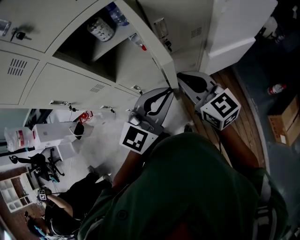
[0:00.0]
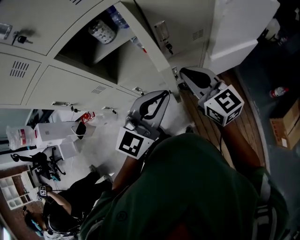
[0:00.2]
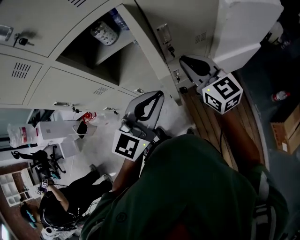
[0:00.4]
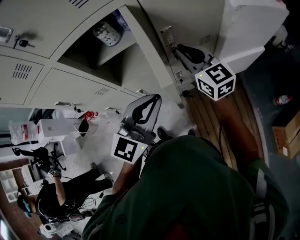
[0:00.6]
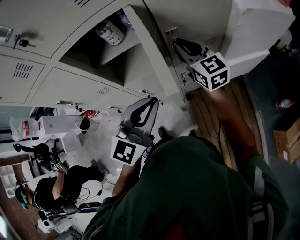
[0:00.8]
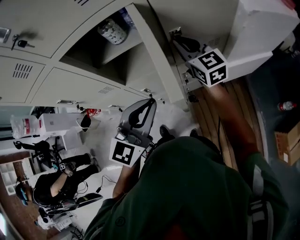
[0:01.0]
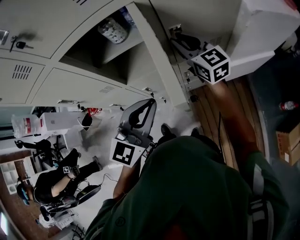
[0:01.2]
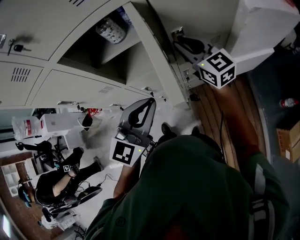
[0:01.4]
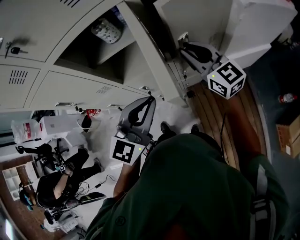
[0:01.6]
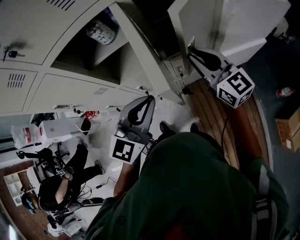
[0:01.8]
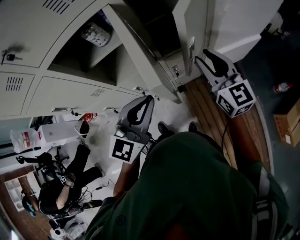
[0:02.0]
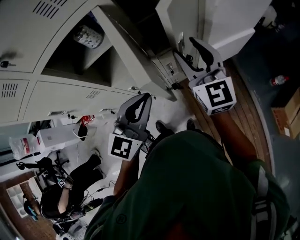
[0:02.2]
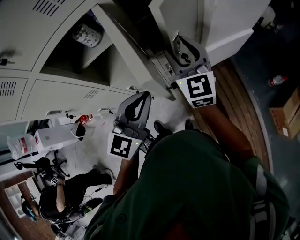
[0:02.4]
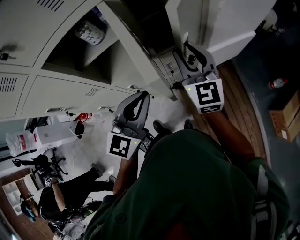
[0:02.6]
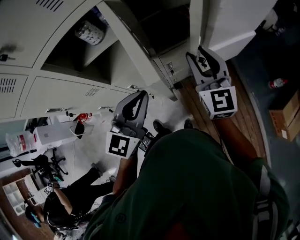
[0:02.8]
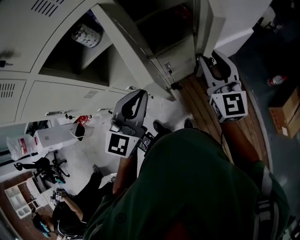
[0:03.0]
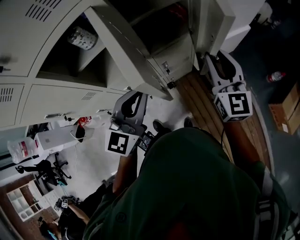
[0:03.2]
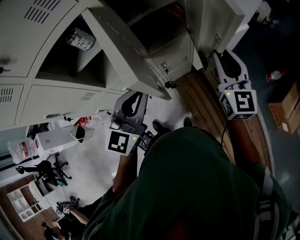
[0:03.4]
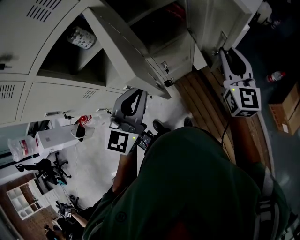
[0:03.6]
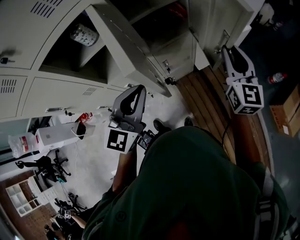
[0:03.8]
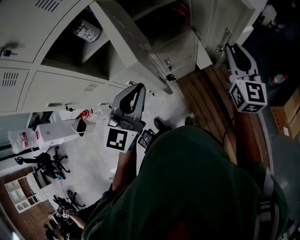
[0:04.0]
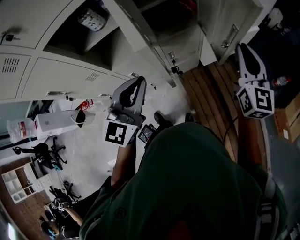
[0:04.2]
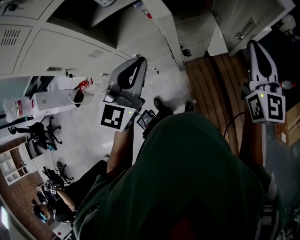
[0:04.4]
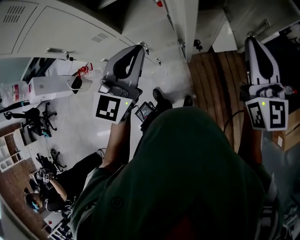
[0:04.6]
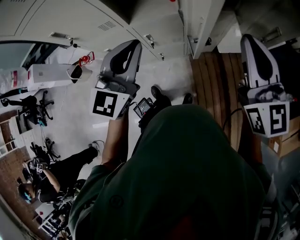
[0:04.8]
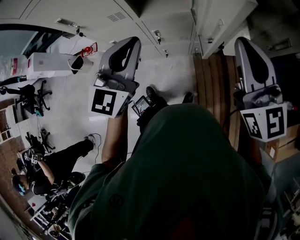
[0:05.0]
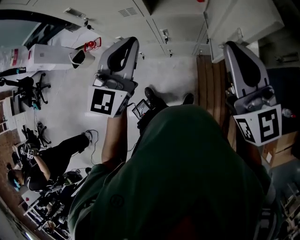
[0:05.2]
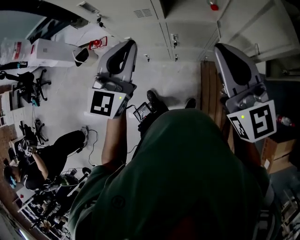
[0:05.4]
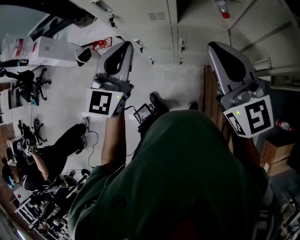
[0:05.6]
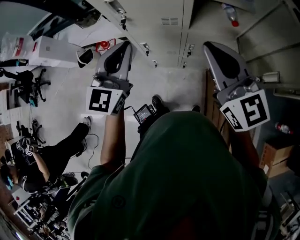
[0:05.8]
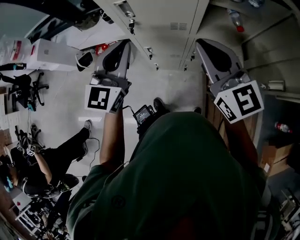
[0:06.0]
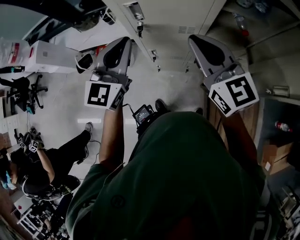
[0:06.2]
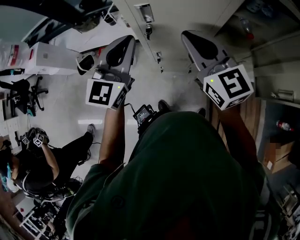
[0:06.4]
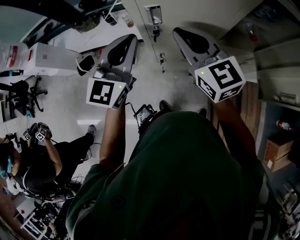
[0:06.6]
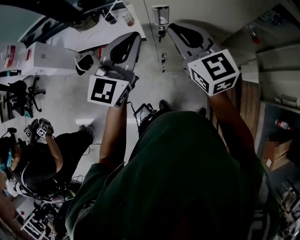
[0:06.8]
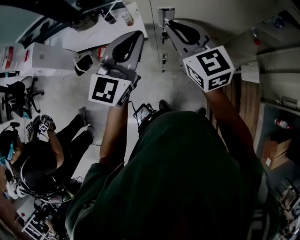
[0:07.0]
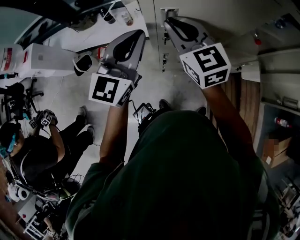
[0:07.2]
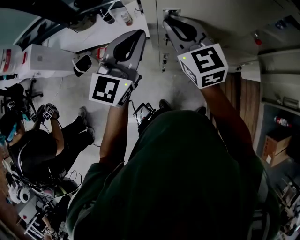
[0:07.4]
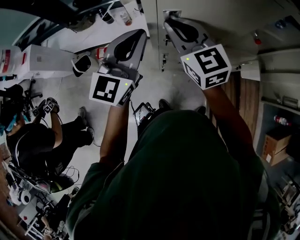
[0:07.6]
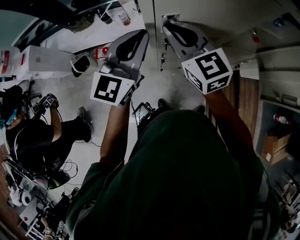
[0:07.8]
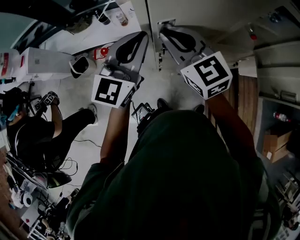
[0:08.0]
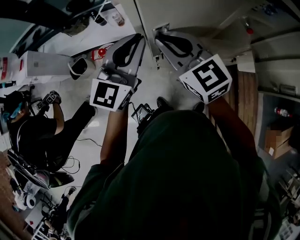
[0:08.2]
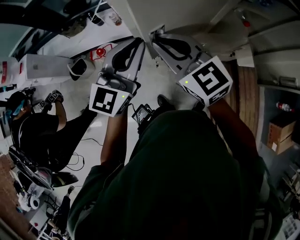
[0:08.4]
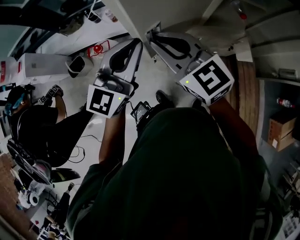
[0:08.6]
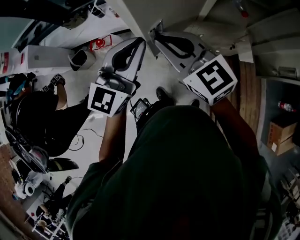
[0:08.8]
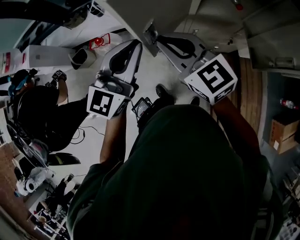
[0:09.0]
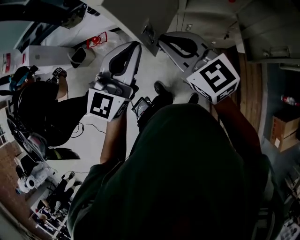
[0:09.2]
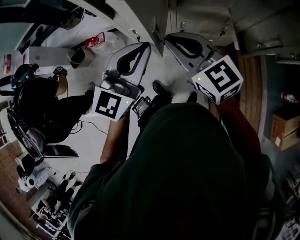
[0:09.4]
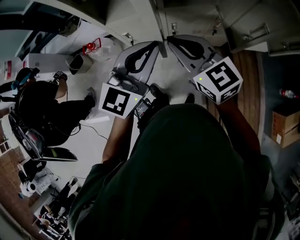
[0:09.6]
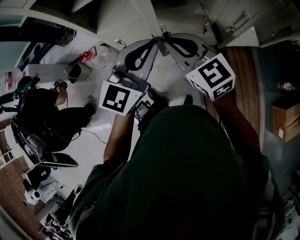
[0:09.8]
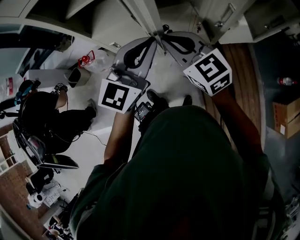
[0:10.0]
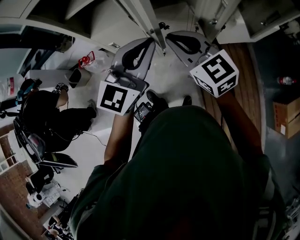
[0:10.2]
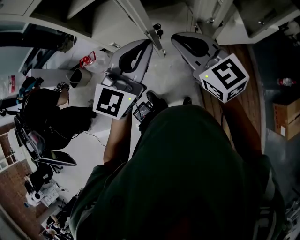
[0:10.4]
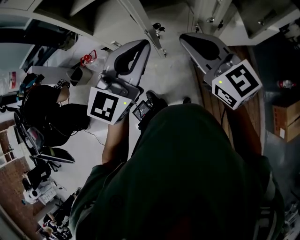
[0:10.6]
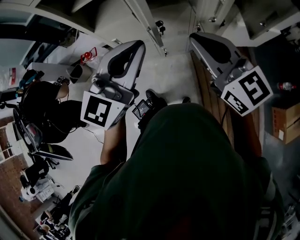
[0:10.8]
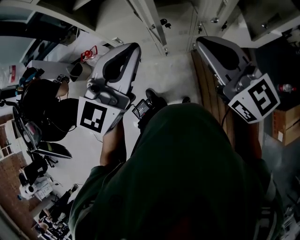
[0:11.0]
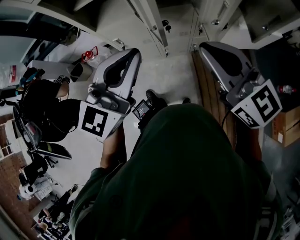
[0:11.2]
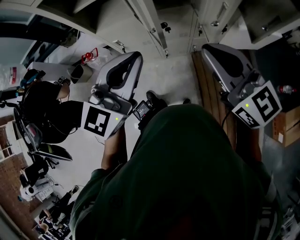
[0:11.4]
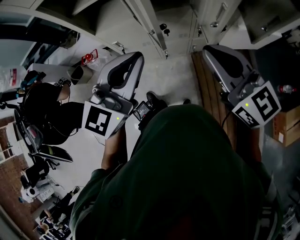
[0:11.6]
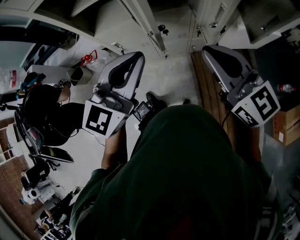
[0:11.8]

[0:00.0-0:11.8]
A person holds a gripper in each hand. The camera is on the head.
0:00.0 to 0:01.4: The right gripper shifts approximately 20 cm forward. Meanwhile the left gripper moves to the left, some 5 cm.
0:01.4 to 0:03.0: The right gripper moves left and right over approximately 15 cm, changing direction 2 times, and changes its angle by some 30 degrees.
0:03.0 to 0:04.4: The right gripper moves to the right, about 10 cm, and closes its fingers.
0:04.4 to 0:06.0: The right gripper changes place by about 50 cm, and rotates roughly 40 degrees, while the left gripper changes place by approximately 40 cm, and turns by about 30 degrees.
0:06.0 to 0:07.4: The right gripper moves to the left and forward, about 25 cm. The left gripper shifts approximately 10 cm forward and to the left.
0:07.4 to 0:08.8: The two grippers go about 15 cm backward and to the right.
0:08.8 to 0:10.4: The two grippers go approximately 30 cm to the right and backward.
0:10.4 to 0:11.8: The left gripper moves about 5 cm, while the right gripper heads upward and to the right, covering some 5 cm.

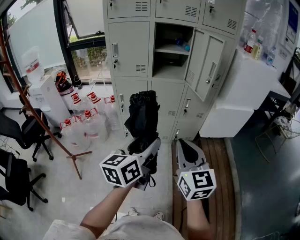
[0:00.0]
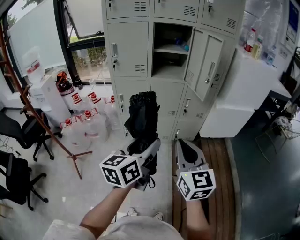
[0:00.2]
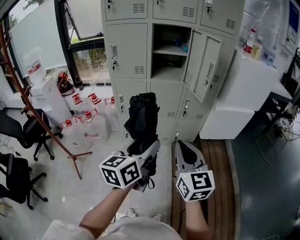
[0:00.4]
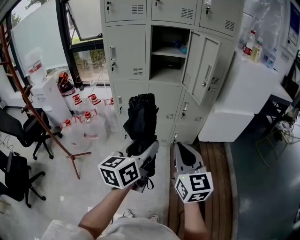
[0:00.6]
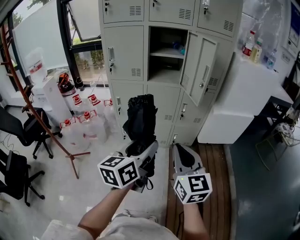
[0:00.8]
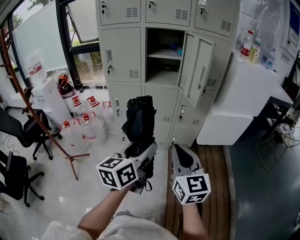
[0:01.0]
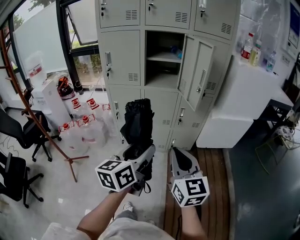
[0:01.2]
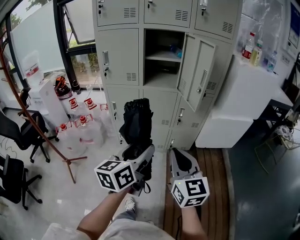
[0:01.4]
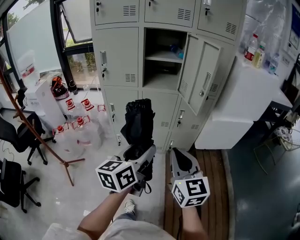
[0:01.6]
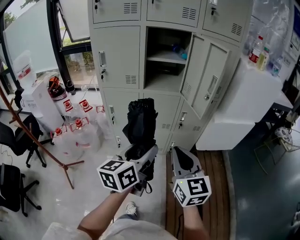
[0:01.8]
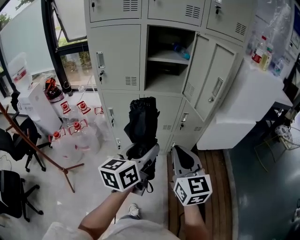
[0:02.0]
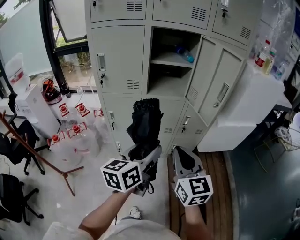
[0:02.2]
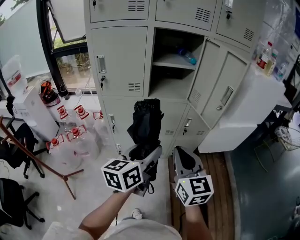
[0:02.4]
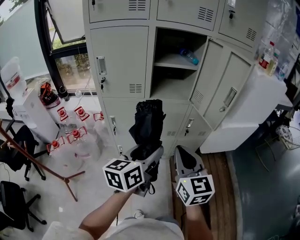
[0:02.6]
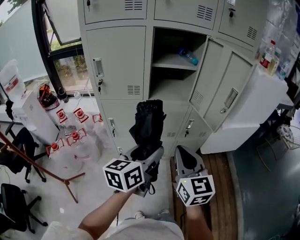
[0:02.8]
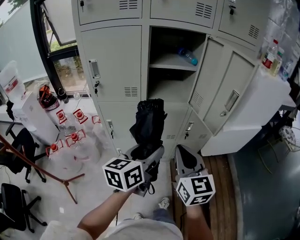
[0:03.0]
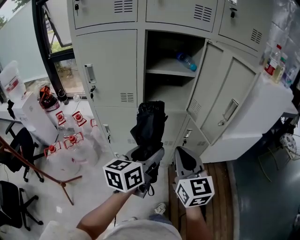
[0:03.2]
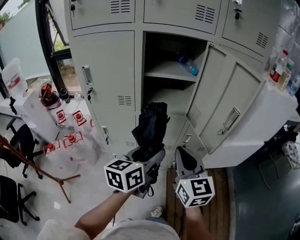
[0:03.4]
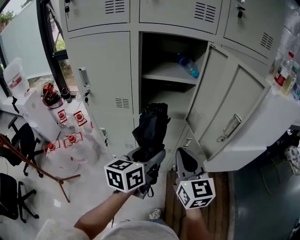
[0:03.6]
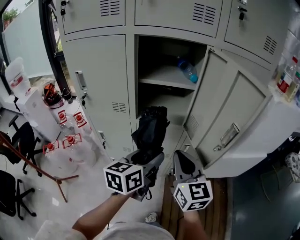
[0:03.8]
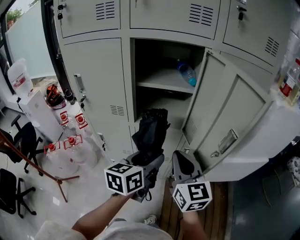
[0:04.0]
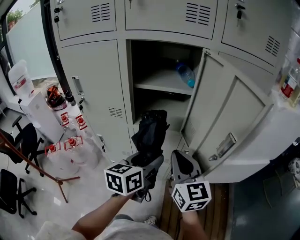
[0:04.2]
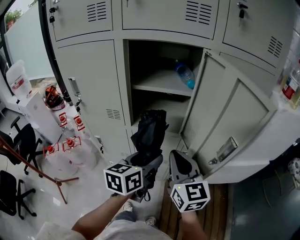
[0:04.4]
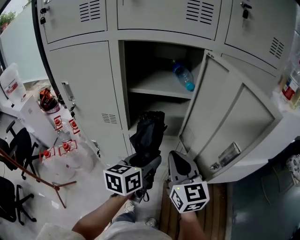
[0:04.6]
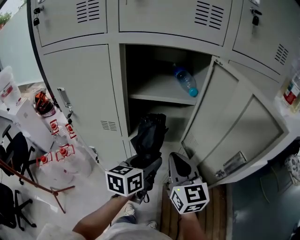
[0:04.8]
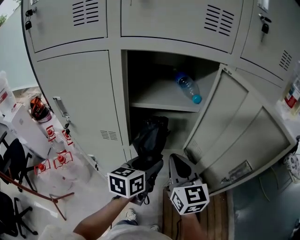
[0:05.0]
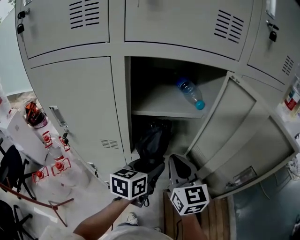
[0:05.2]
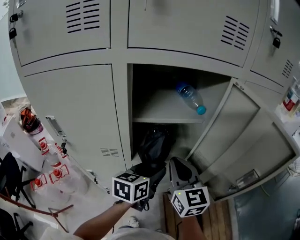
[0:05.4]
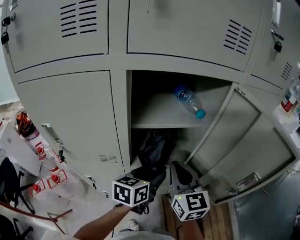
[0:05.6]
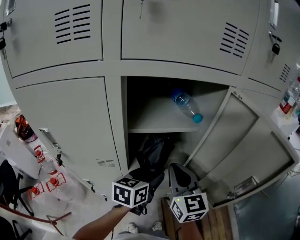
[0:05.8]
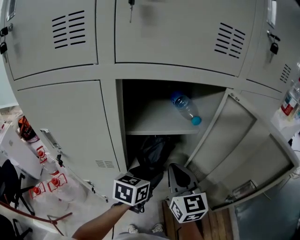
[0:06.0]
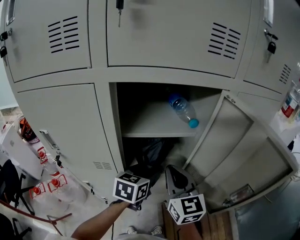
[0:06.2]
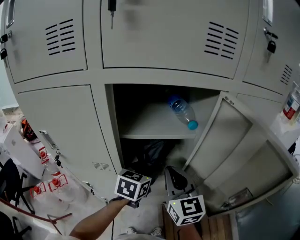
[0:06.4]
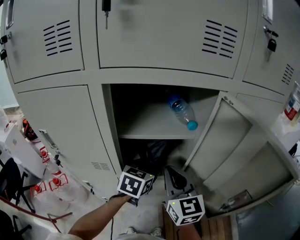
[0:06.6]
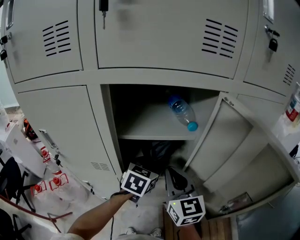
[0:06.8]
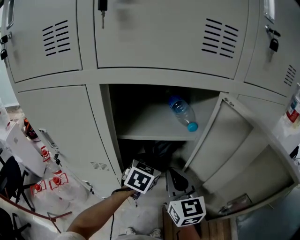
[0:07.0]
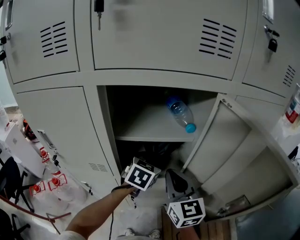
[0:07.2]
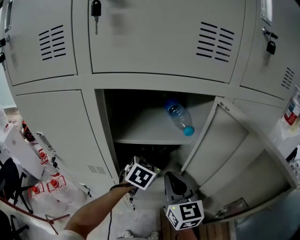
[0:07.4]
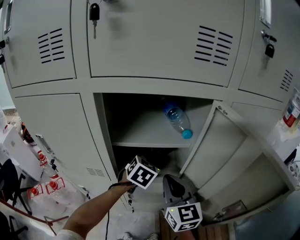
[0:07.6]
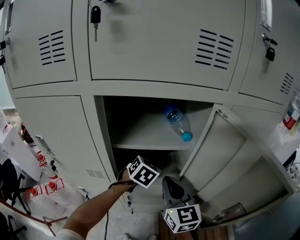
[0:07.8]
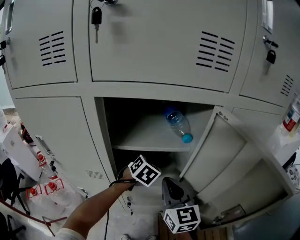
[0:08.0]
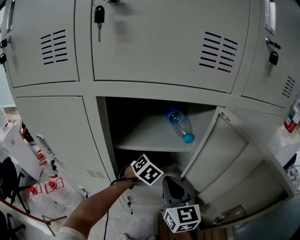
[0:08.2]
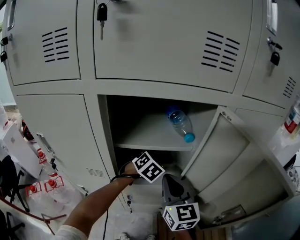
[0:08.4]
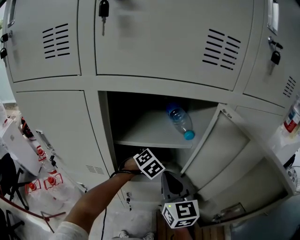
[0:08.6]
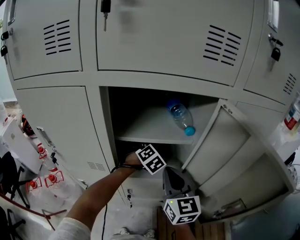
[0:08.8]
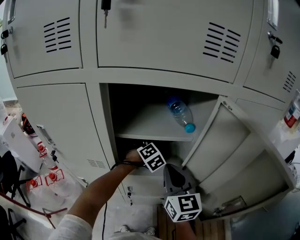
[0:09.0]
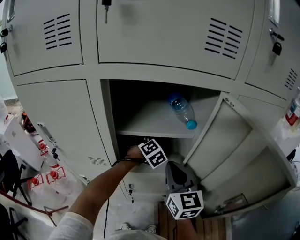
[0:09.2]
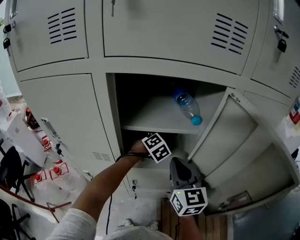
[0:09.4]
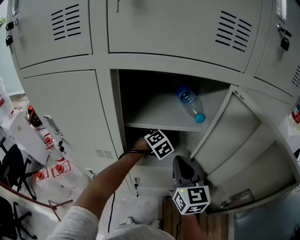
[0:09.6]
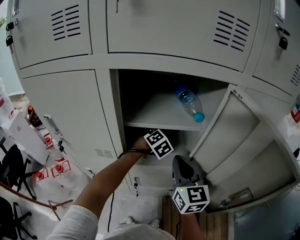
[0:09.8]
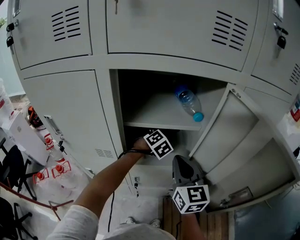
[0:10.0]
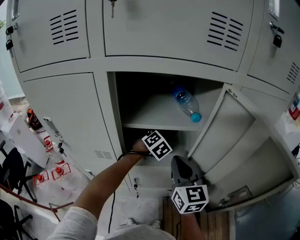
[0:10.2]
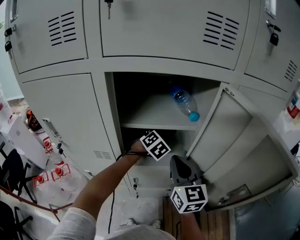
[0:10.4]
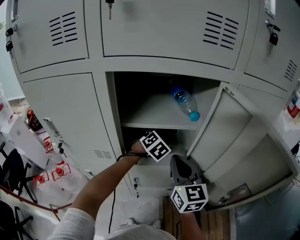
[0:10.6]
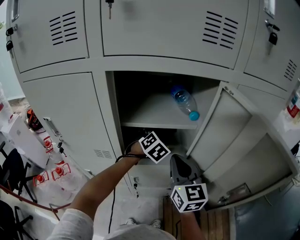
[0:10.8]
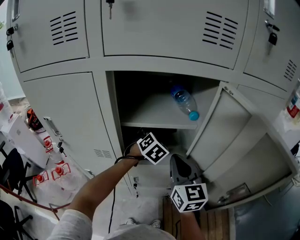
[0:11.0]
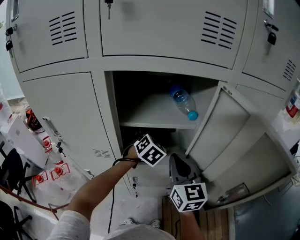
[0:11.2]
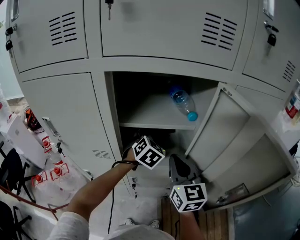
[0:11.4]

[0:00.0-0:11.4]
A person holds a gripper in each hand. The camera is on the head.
0:00.0 to 0:01.4: Both grippers move to the right, roughly 5 cm.
0:01.4 to 0:02.8: The grippers both shift forward and to the left by about 20 cm.
0:02.8 to 0:04.2: The grippers both shift forward and to the right by roughly 20 cm.
0:04.2 to 0:05.6: The left gripper moves forward, roughly 15 cm. Meanwhile the right gripper is displaced forward and to the left by roughly 15 cm.
0:05.6 to 0:07.2: The left gripper shifts about 10 cm forward, and rotates some 30 degrees.
0:07.2 to 0:08.6: The left gripper shifts roughly 10 cm forward, and swivels some 30 degrees.
0:08.6 to 0:10.0: The grippers move only a little.
0:10.0 to 0:11.4: The left gripper moves upward and backward, about 10 cm, and turns by roughly 20 degrees.

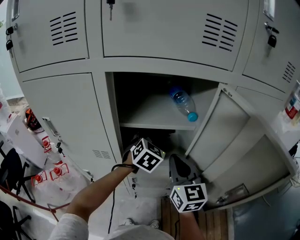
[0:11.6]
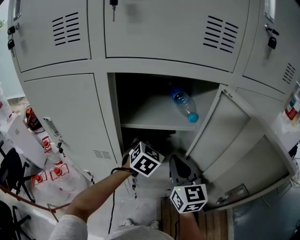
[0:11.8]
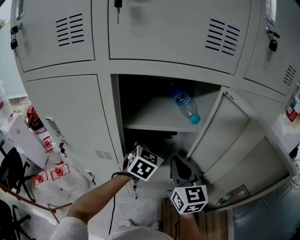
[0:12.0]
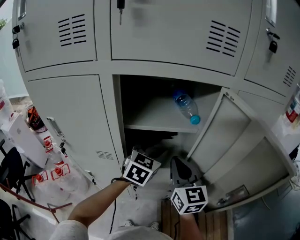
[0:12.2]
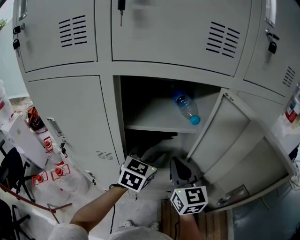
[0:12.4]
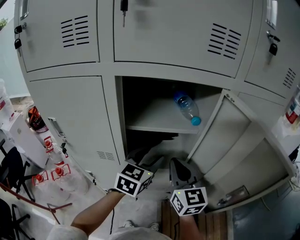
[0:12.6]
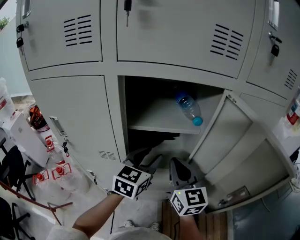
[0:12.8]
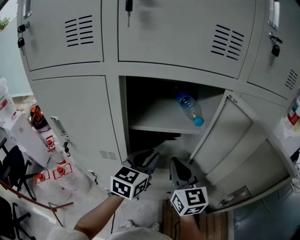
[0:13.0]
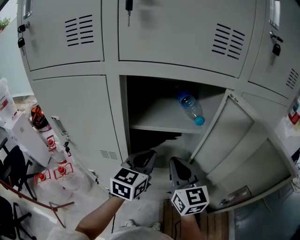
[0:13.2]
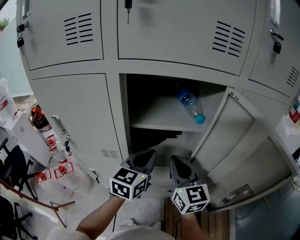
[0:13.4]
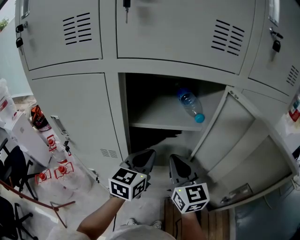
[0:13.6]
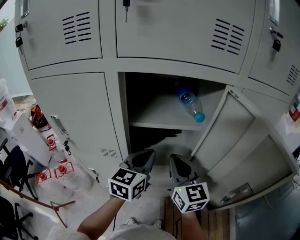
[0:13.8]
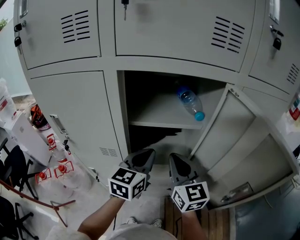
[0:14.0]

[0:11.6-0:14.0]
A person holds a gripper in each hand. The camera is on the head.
0:11.6 to 0:12.8: The left gripper shifts some 10 cm backward, and swivels roughly 30 degrees.
0:12.8 to 0:14.0: The left gripper closes up.
